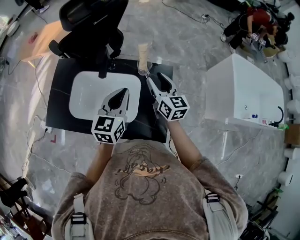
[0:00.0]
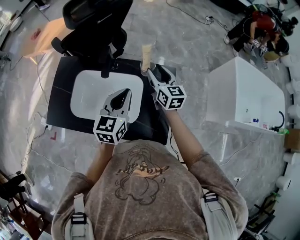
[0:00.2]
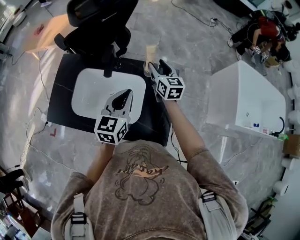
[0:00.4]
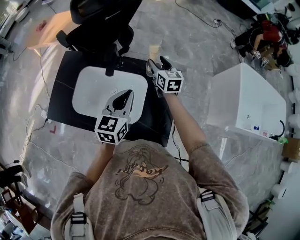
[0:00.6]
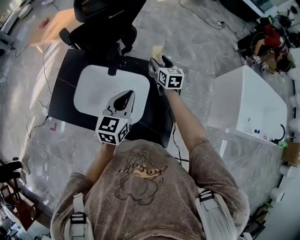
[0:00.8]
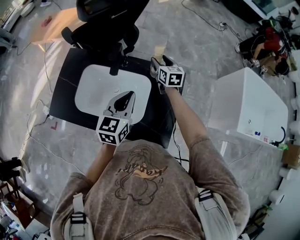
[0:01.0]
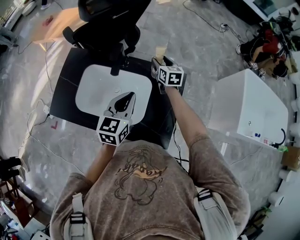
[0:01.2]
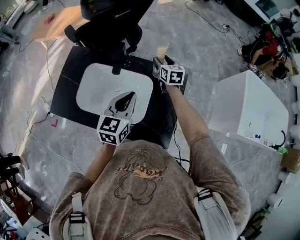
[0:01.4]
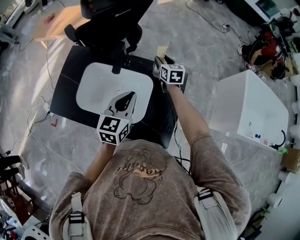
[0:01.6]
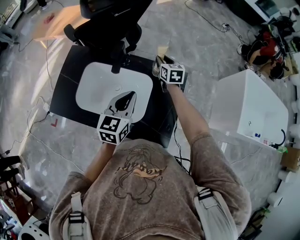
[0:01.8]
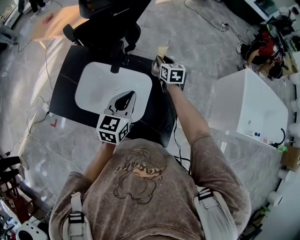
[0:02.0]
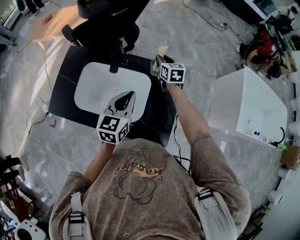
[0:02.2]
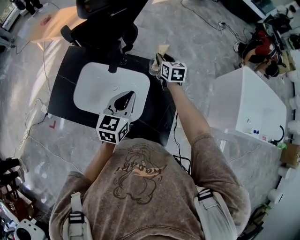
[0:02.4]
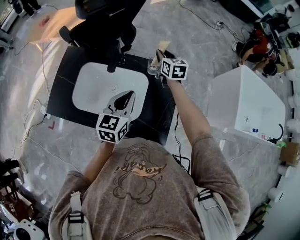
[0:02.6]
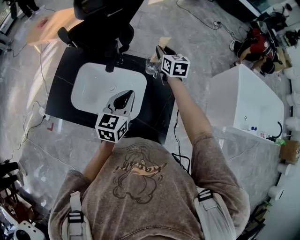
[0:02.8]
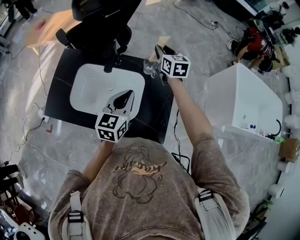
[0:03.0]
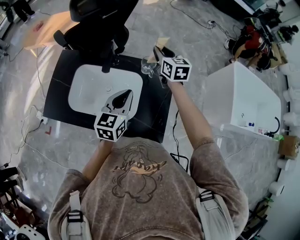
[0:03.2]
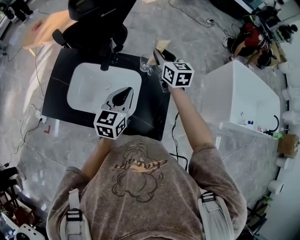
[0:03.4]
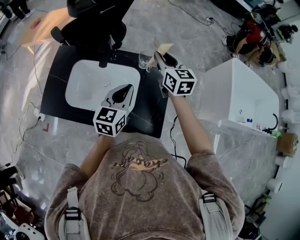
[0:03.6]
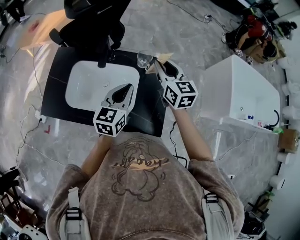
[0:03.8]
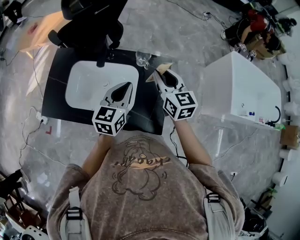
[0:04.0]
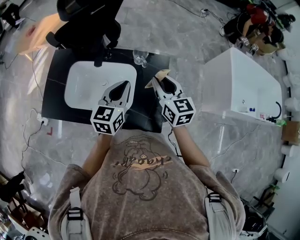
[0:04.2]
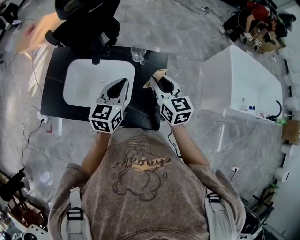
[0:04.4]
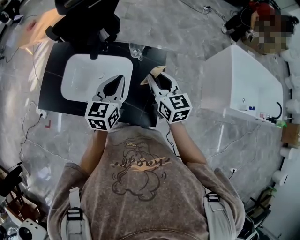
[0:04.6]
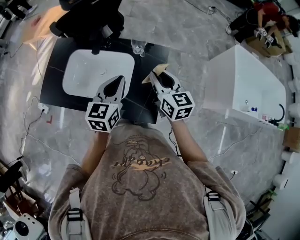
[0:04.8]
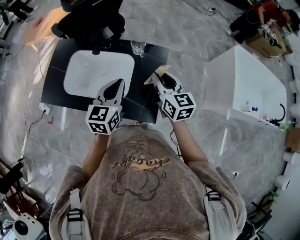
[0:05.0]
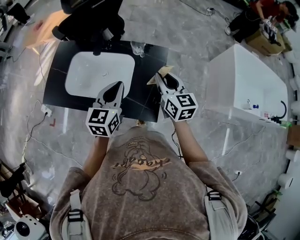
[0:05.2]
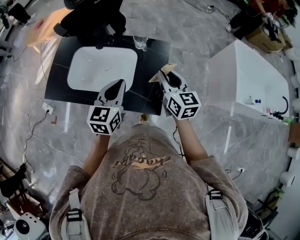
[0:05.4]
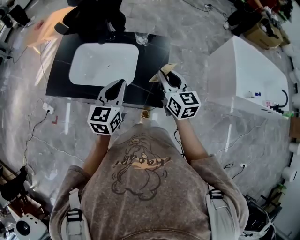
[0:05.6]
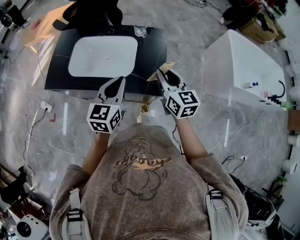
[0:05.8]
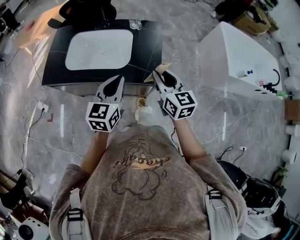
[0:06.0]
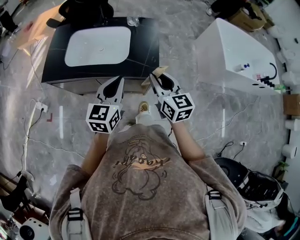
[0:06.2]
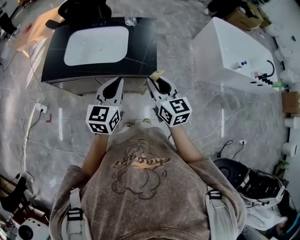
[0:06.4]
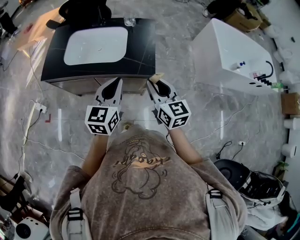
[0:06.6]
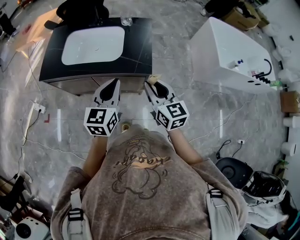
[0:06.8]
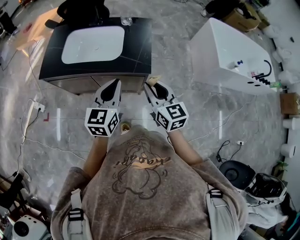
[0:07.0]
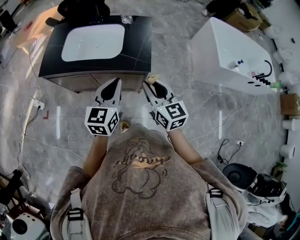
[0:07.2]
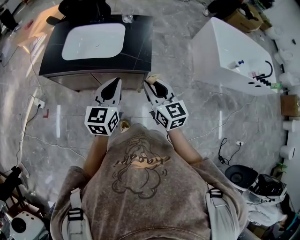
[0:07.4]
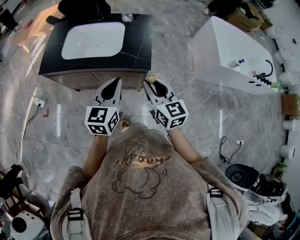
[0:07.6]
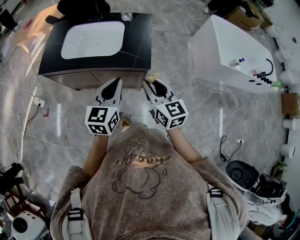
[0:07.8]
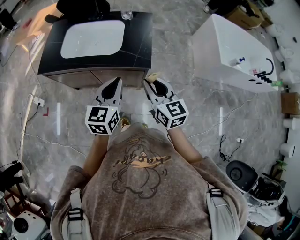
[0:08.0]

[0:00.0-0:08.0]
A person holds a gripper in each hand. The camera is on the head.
0:00.0 to 0:01.6: The right gripper goes about 20 cm forward and downward, and changes its angle by roughly 20 degrees.
0:01.6 to 0:03.2: The right gripper moves upward, roughly 10 cm.
0:03.2 to 0:04.8: The right gripper goes roughly 20 cm backward. Meanwhile the left gripper moves roughly 5 cm.
0:04.8 to 0:06.4: Both grippers move backward, roughly 30 cm.
0:06.4 to 0:08.0: The right gripper shifts by approximately 5 cm. Meanwhile the left gripper ends up roughly 5 cm from where it was.

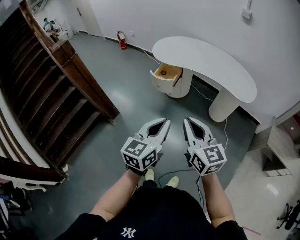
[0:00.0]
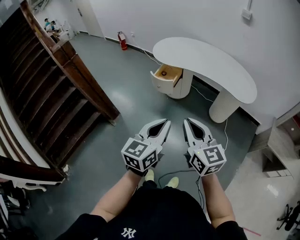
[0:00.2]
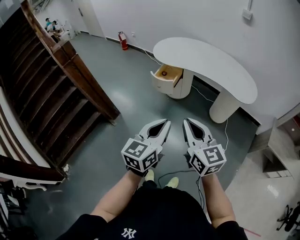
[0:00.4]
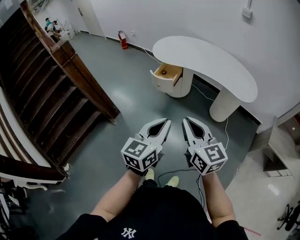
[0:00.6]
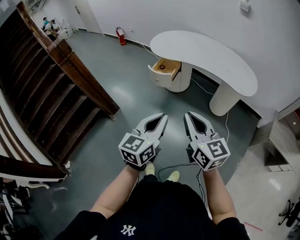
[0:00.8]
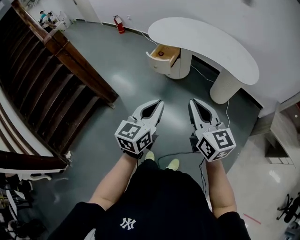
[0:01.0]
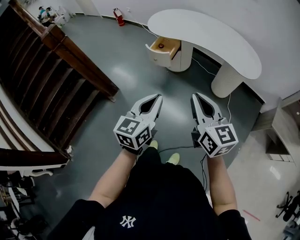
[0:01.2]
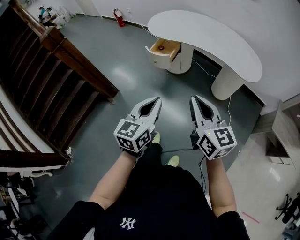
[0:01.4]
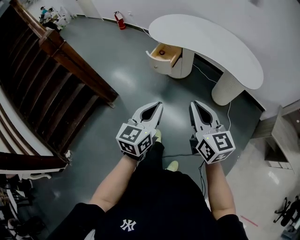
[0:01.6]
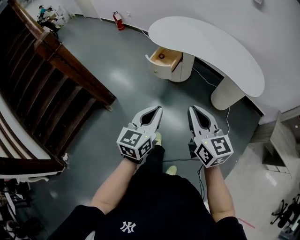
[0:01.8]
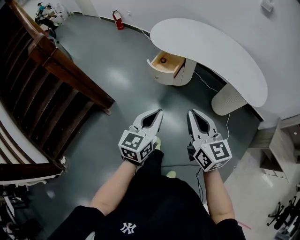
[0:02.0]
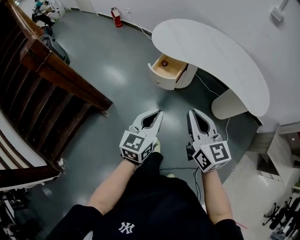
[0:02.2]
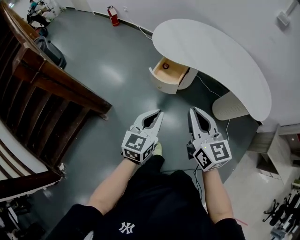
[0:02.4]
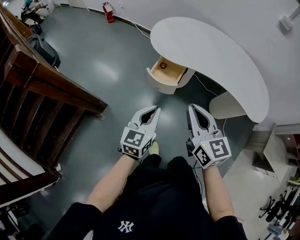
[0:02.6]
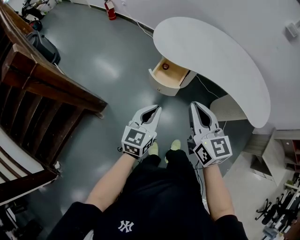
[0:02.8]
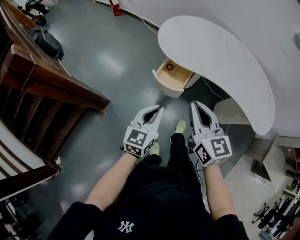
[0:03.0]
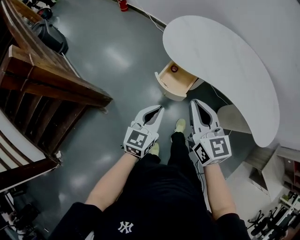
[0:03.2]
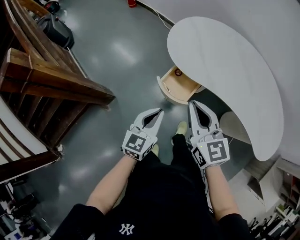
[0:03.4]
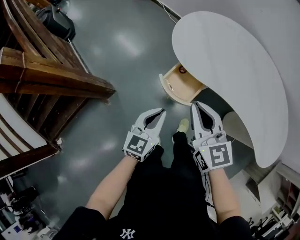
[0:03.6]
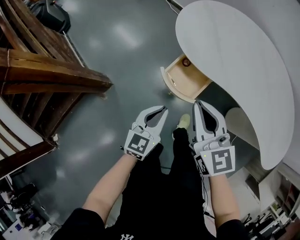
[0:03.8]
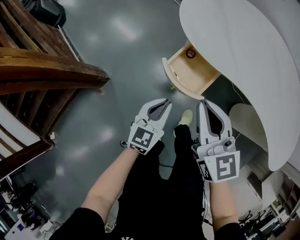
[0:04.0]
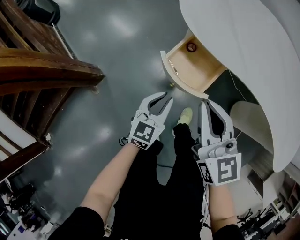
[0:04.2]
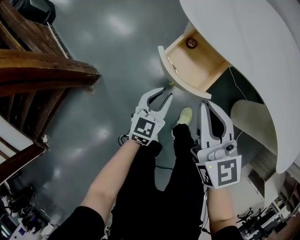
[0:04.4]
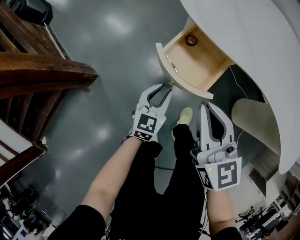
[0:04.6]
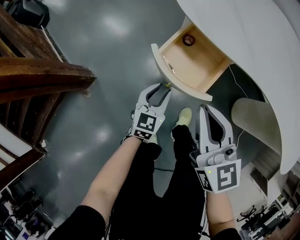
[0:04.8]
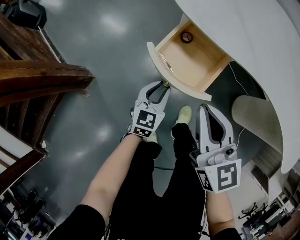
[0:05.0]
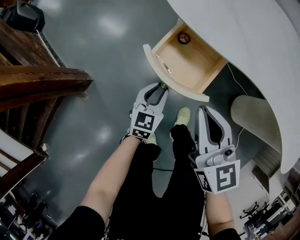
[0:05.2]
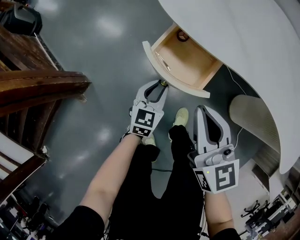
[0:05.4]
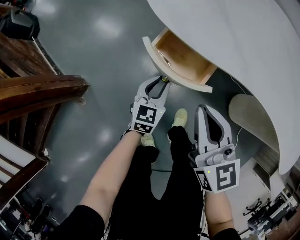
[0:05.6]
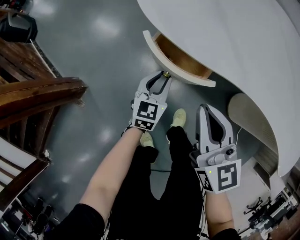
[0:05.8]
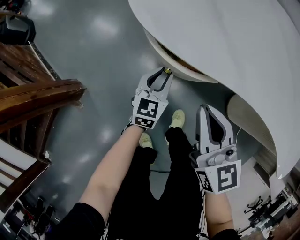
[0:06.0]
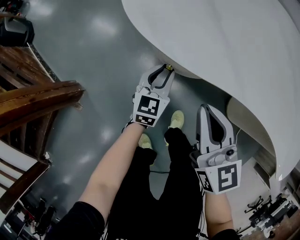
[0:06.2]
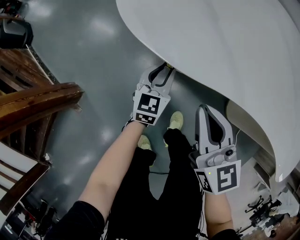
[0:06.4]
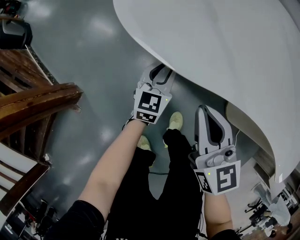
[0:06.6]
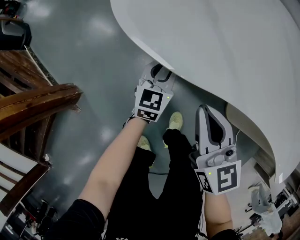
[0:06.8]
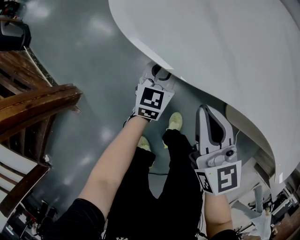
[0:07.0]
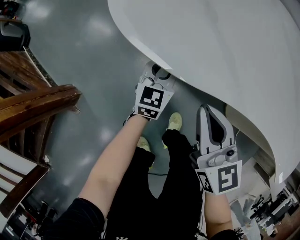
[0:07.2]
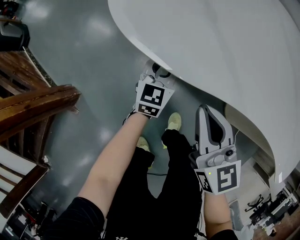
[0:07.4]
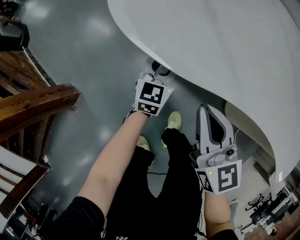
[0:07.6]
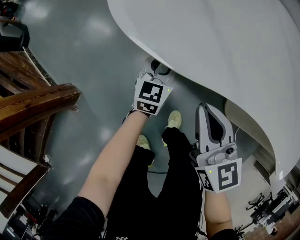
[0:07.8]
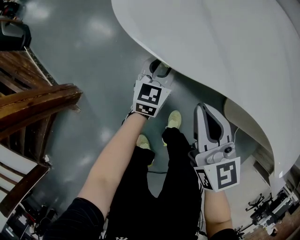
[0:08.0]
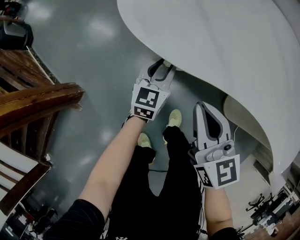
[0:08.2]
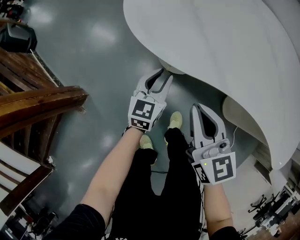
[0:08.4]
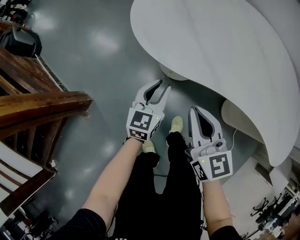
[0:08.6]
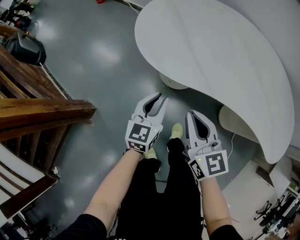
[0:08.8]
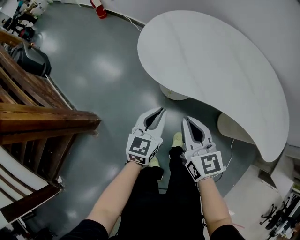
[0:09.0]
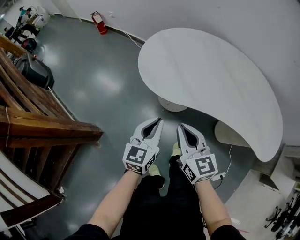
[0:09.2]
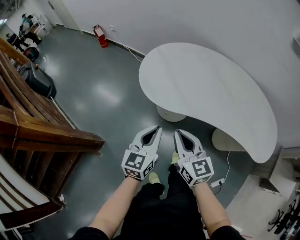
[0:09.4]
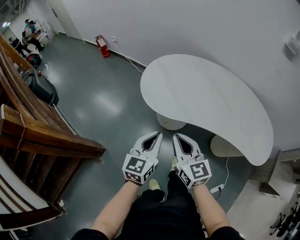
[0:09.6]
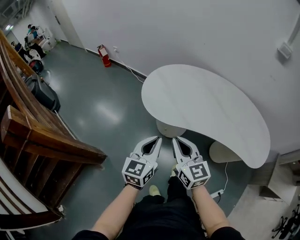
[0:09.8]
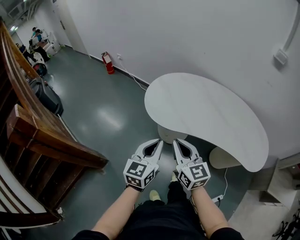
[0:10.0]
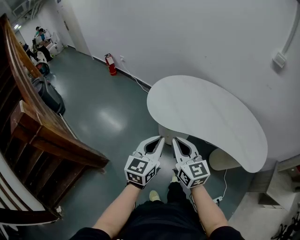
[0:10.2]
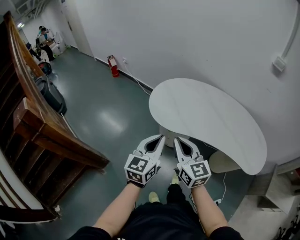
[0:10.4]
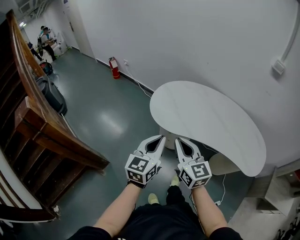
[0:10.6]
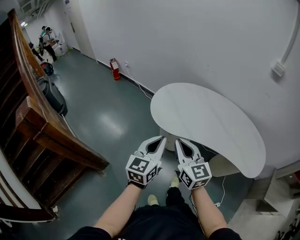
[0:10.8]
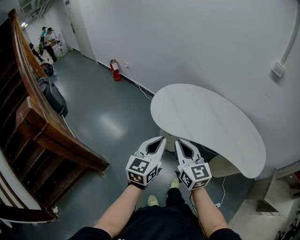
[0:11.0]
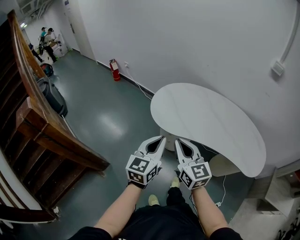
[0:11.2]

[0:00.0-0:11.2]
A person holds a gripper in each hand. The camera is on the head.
0:00.0 to 0:01.6: The left gripper travels forward and downward by roughly 10 cm, while the right gripper moves to the right and forward, about 10 cm.
0:01.6 to 0:03.2: The pair of grippers is taken forward, about 40 cm.
0:03.2 to 0:04.8: The two grippers go approximately 35 cm downward. The left gripper opens up.
0:04.8 to 0:06.4: The left gripper is displaced forward and to the right by about 20 cm. The right gripper moves to the right and forward, approximately 15 cm.
0:06.4 to 0:08.0: The grippers move only a little.
0:08.0 to 0:09.6: The left gripper shifts some 40 cm upward and backward, and closes up. Meanwhile the right gripper goes roughly 25 cm upward.
0:09.6 to 0:11.2: Both grippers travel together upward, some 10 cm.

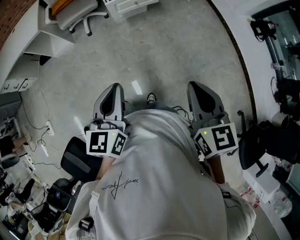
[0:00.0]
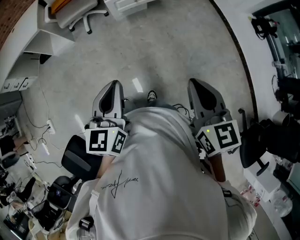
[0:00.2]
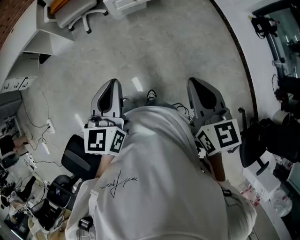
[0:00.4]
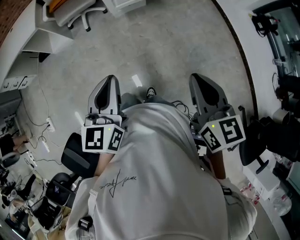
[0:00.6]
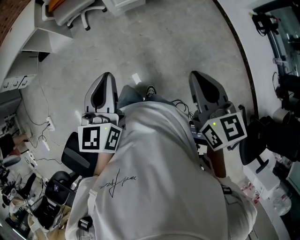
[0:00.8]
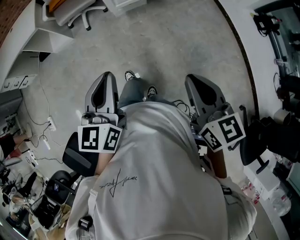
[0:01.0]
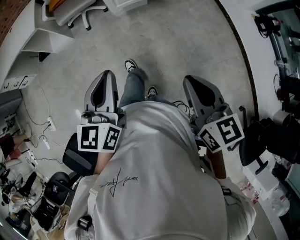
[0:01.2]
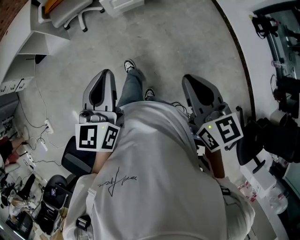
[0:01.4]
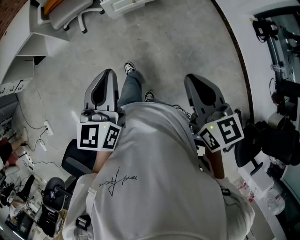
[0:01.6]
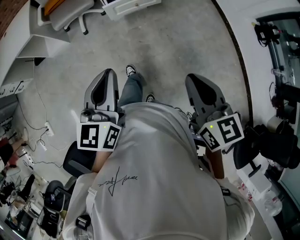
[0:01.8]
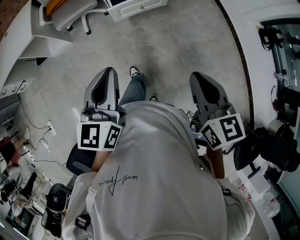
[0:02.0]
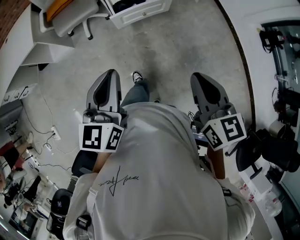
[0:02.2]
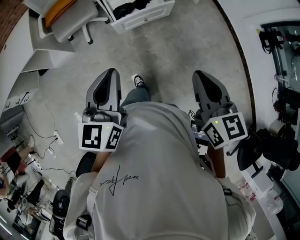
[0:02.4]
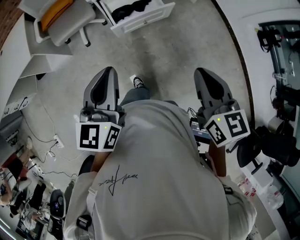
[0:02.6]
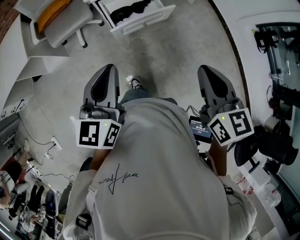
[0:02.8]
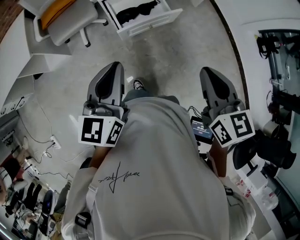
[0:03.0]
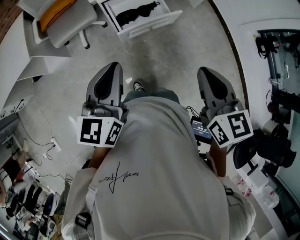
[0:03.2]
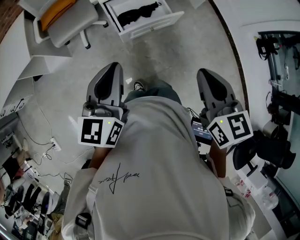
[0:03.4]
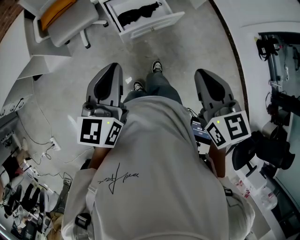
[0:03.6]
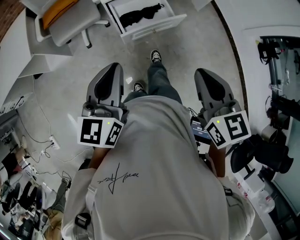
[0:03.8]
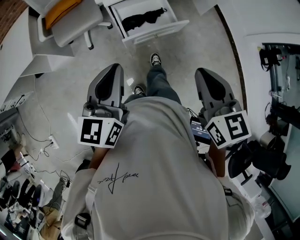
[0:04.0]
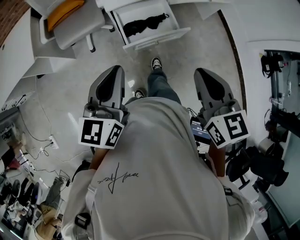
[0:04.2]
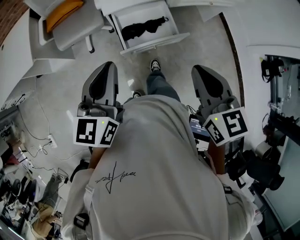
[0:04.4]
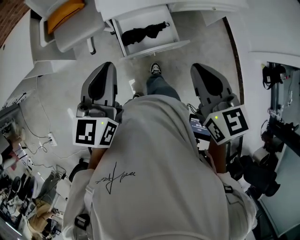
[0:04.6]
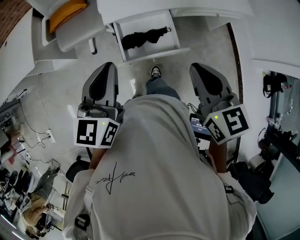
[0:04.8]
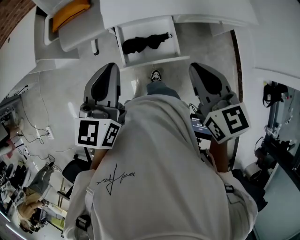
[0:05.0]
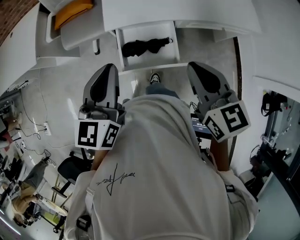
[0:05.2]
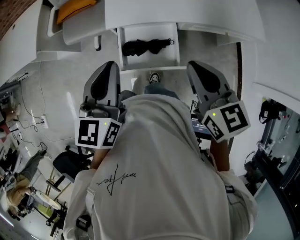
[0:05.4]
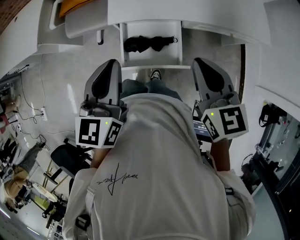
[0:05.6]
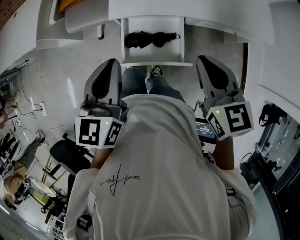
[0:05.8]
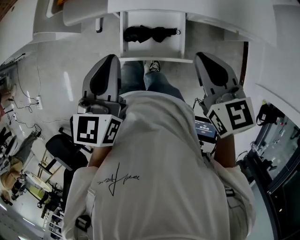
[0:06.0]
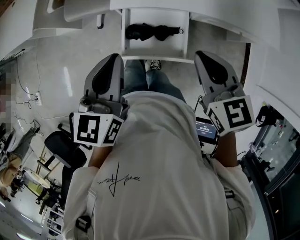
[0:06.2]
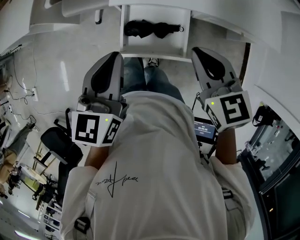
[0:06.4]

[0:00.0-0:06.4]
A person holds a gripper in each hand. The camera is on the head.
0:00.0 to 0:01.6: Both grippers move forward, some 10 cm.
0:01.6 to 0:03.2: Both grippers travel together forward, about 25 cm.
0:03.2 to 0:04.8: The two grippers go about 20 cm forward.
0:04.8 to 0:06.4: The left gripper is displaced to the right by approximately 5 cm, while the right gripper goes approximately 15 cm forward and downward, and rotates roughly 30 degrees.
